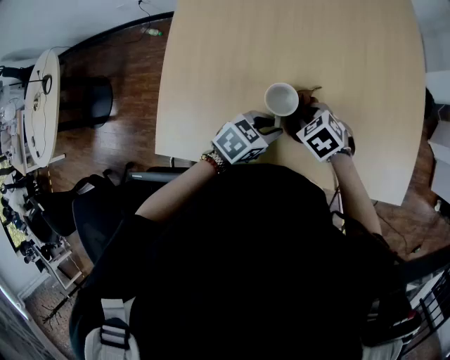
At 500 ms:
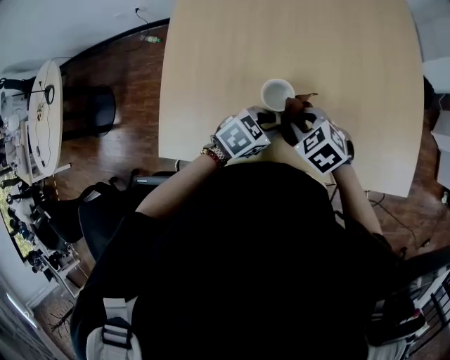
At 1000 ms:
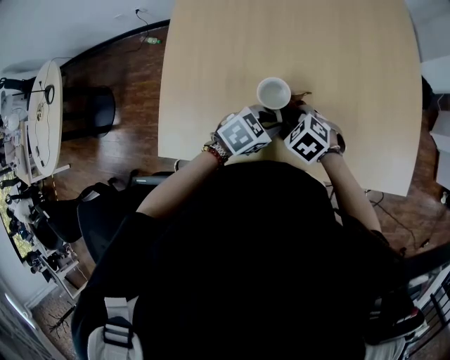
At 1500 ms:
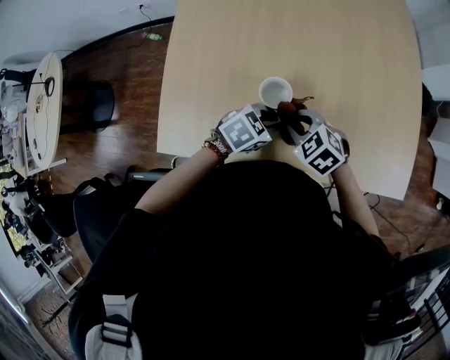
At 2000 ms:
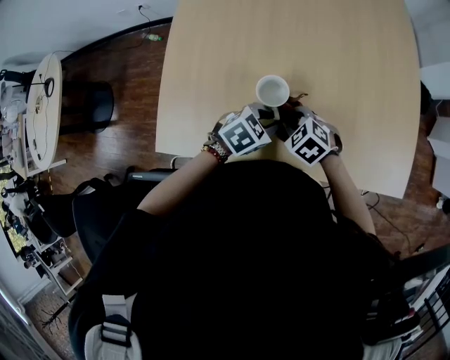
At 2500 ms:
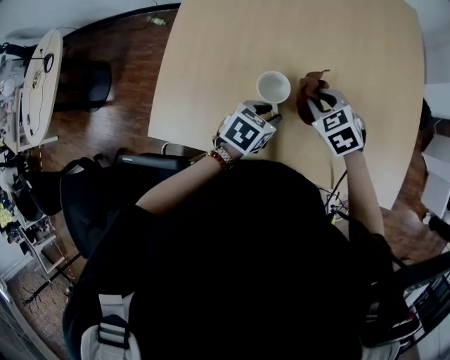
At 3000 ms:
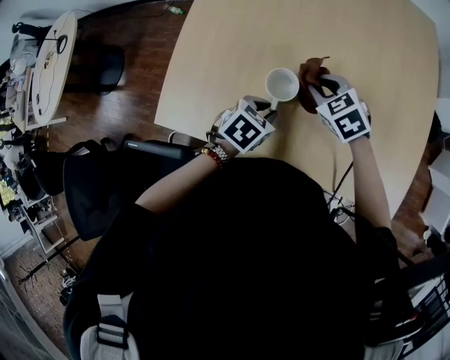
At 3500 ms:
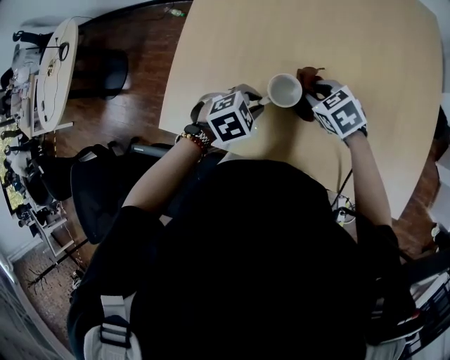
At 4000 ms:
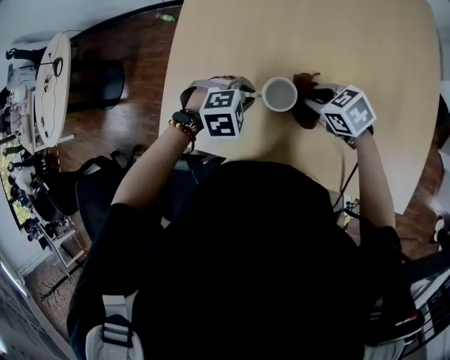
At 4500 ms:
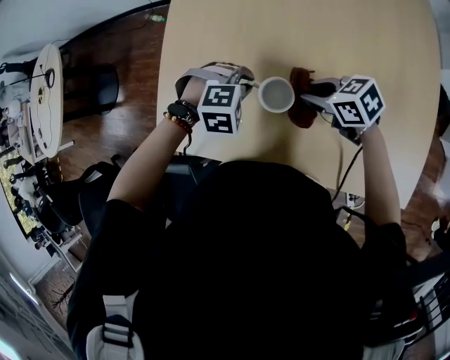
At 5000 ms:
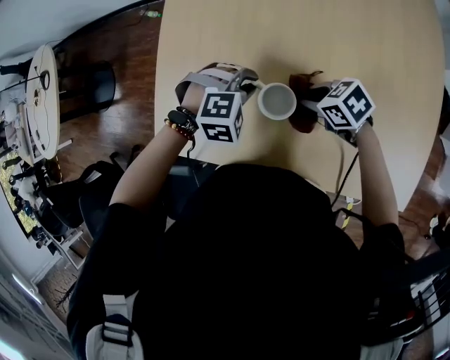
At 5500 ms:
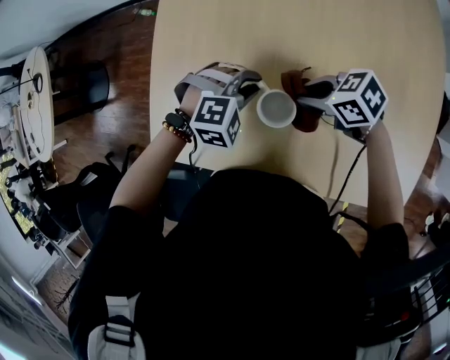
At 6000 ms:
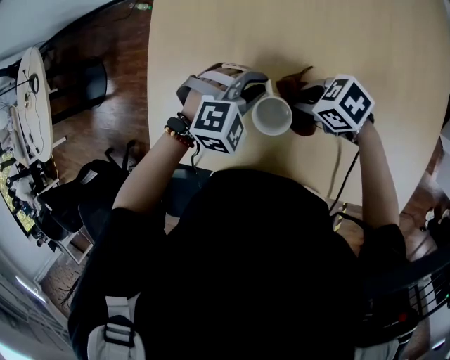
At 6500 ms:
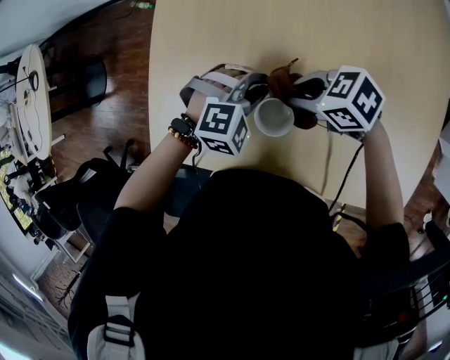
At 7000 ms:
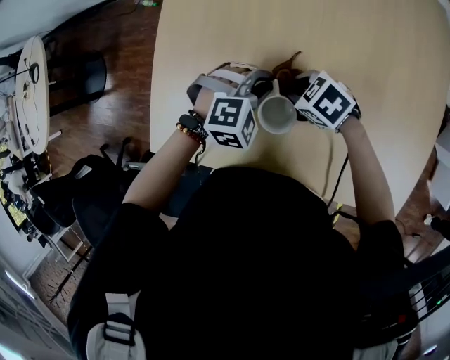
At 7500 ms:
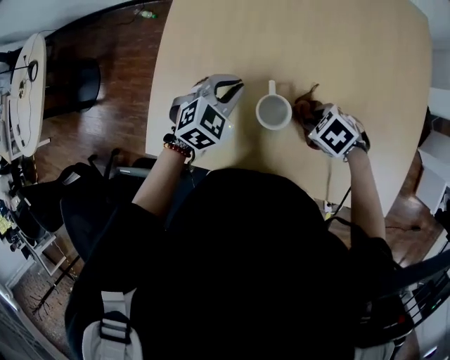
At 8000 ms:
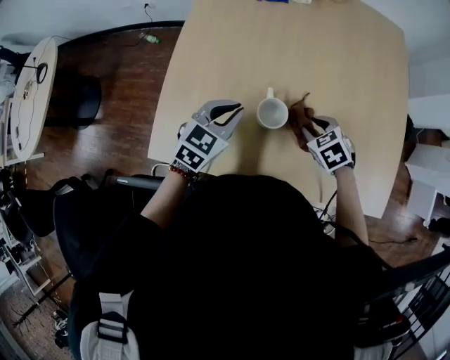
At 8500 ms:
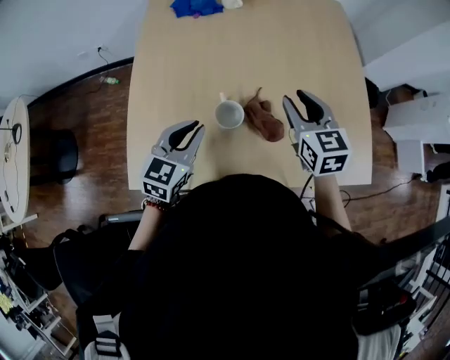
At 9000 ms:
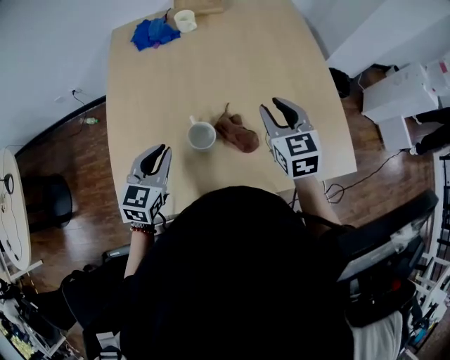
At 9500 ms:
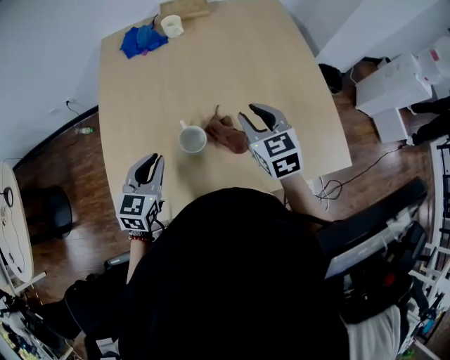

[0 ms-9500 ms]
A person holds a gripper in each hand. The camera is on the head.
0 ms to 2000 ms: The right gripper swings up and down, approximately 5 cm each way, with 3 reversals.
2000 ms to 4000 ms: The right gripper changes its angle by some 20 degrees, while the left gripper moves about 10 cm, and changes its angle by some 30 degrees.
4000 ms to 5500 ms: The left gripper changes place by approximately 10 cm.
5500 ms to 7500 ms: The right gripper moves up and down over approximately 5 cm, changing direction 2 times, and tips its fingers downward by about 30 degrees, while the left gripper changes place by approximately 5 cm, and rotates roughly 40 degrees.
7500 ms to 9500 ms: The right gripper travels upward by approximately 20 cm, and points its fingers roughly 40 degrees further upward. The left gripper ends up about 10 cm from where it was, and turns by approximately 30 degrees.

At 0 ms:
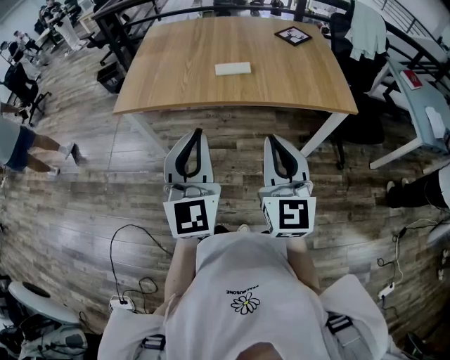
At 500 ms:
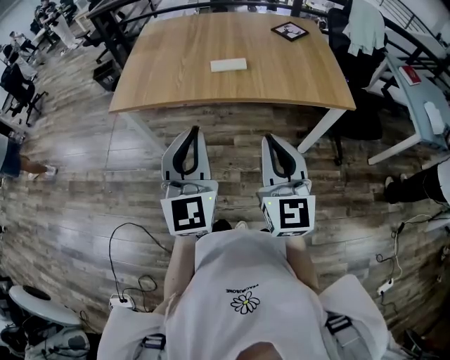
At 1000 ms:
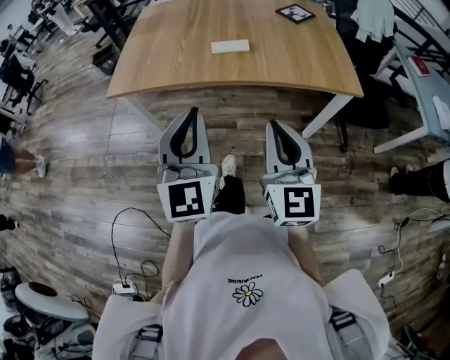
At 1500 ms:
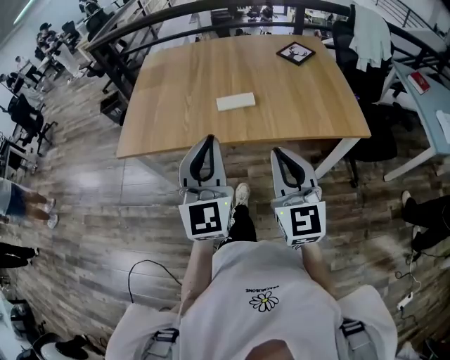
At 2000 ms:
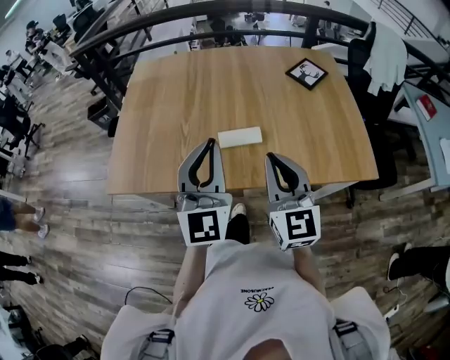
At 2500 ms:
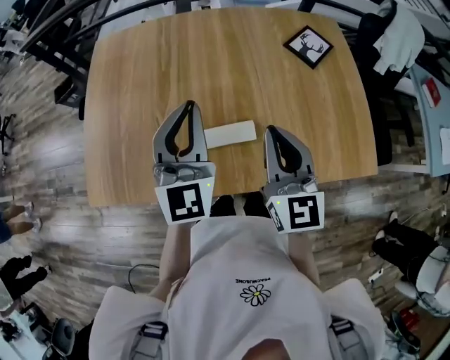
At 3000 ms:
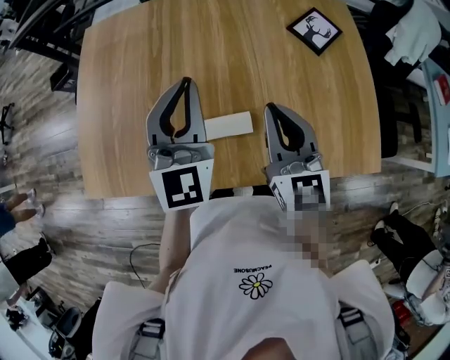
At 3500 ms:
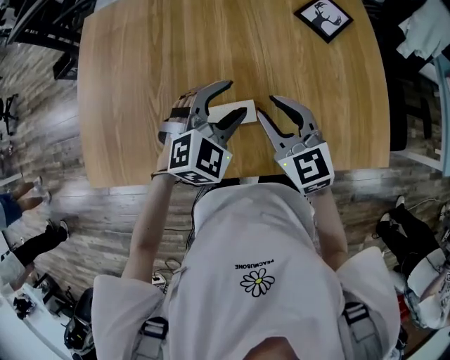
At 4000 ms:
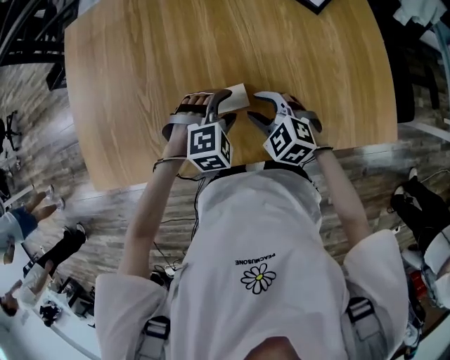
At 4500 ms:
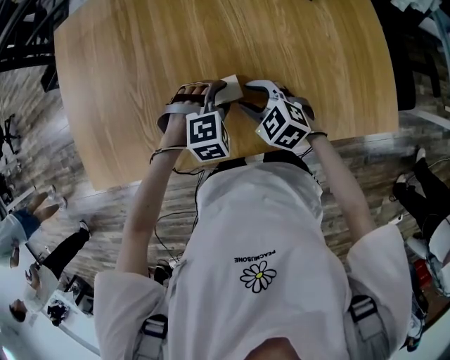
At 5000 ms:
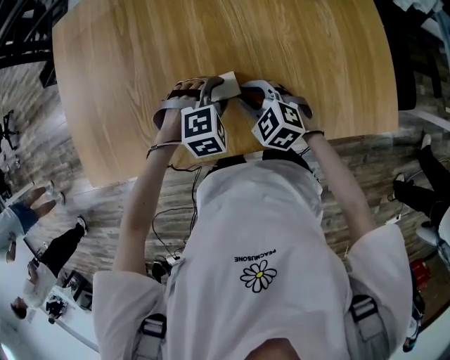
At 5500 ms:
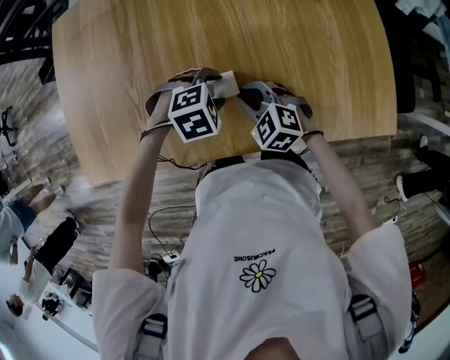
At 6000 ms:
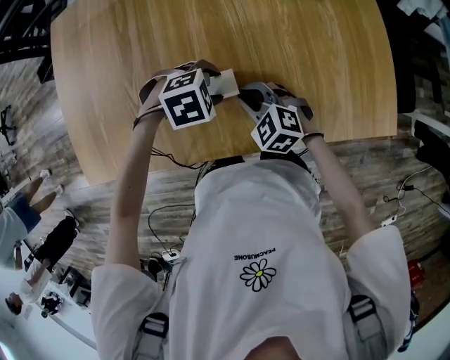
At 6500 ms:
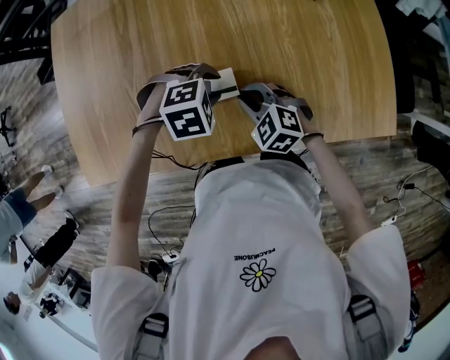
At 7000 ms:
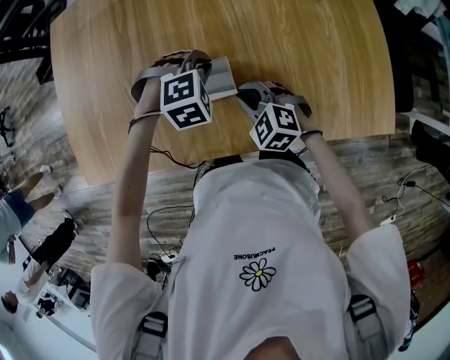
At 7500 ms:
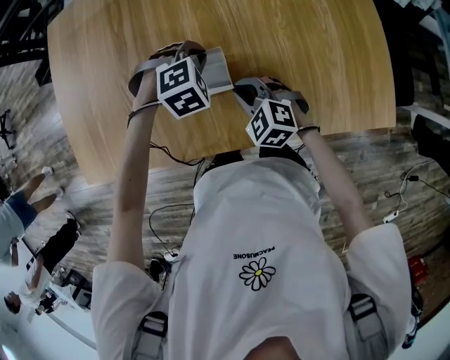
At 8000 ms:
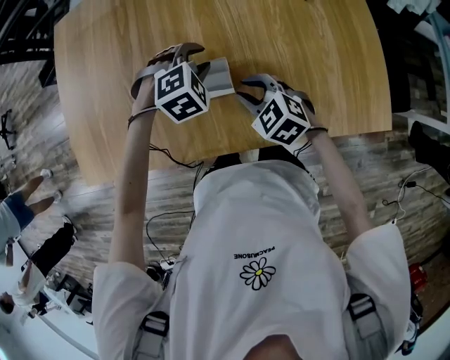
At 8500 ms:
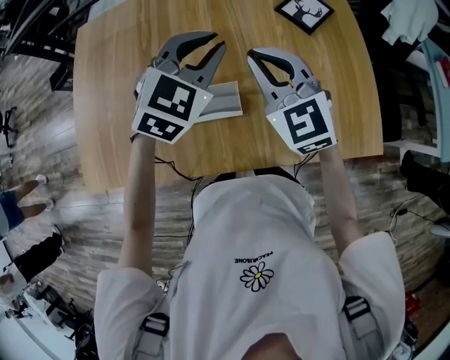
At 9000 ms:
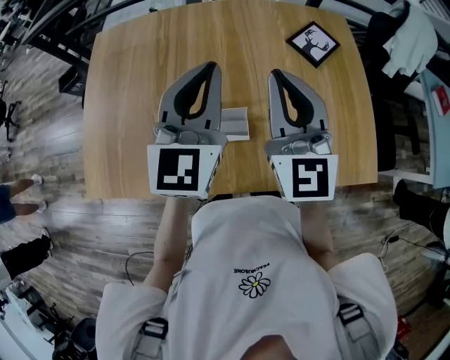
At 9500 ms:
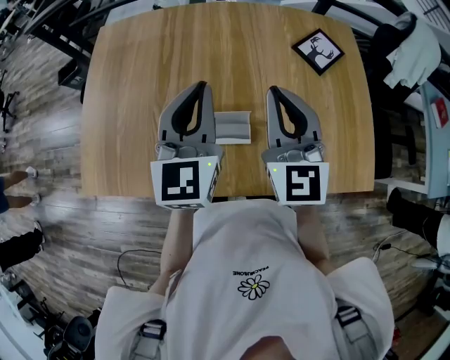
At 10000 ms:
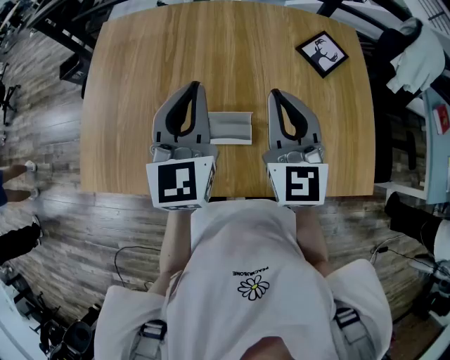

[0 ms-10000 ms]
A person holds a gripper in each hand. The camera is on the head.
0 ms to 2000 ms: Both grippers move forward, about 30 cm.
2000 ms to 4000 ms: The grippers both shift downward and forward by about 30 cm. The right gripper tips its fingers downward by some 50 degrees, and opens up, while the left gripper angles its fingers downward, by roughly 70 degrees, and opens up.
4000 ms to 6000 ms: The left gripper turns by approximately 30 degrees; the right gripper closes.
6000 ms to 8000 ms: The left gripper ends up roughly 10 cm from where it was, rotates some 30 degrees, and closes, then reopens.
8000 ms to 10000 ms: Both grippers travel together upward, about 25 cm. The right gripper angles its fingers upward, by approximately 40 degrees, and closes up. The left gripper tilts its fingers approximately 60 degrees upward, and closes.

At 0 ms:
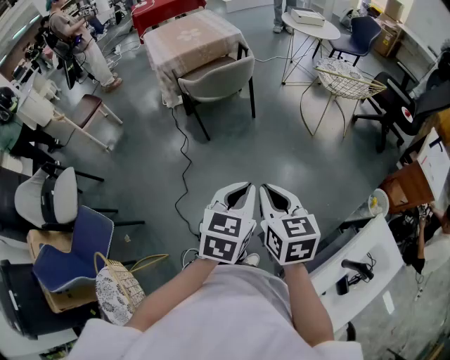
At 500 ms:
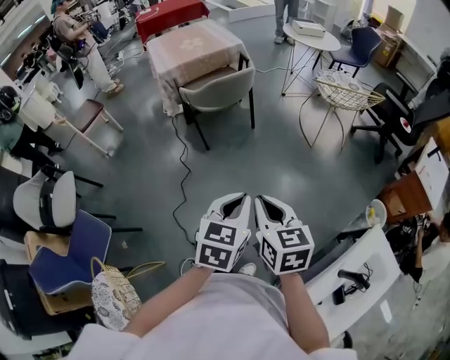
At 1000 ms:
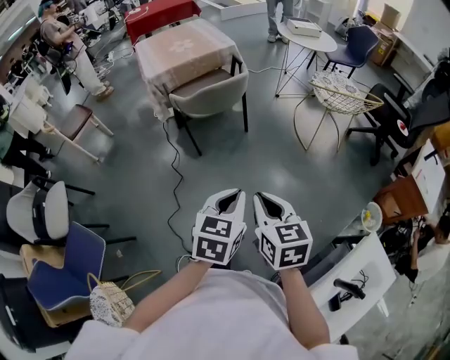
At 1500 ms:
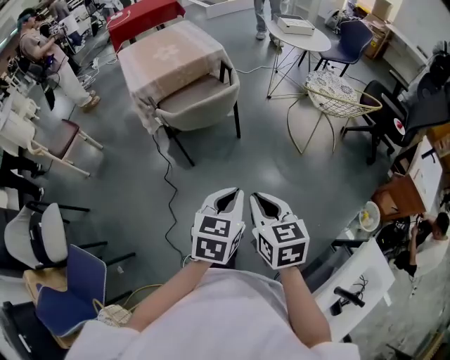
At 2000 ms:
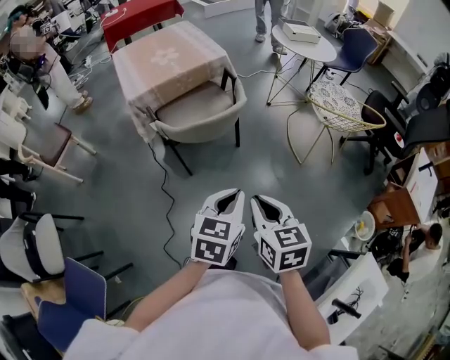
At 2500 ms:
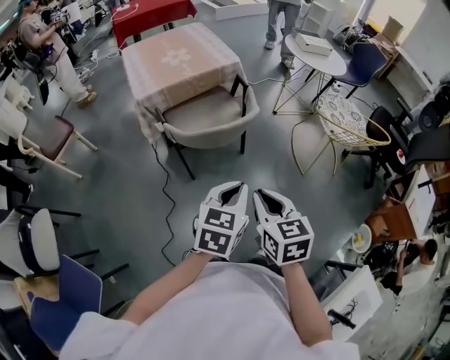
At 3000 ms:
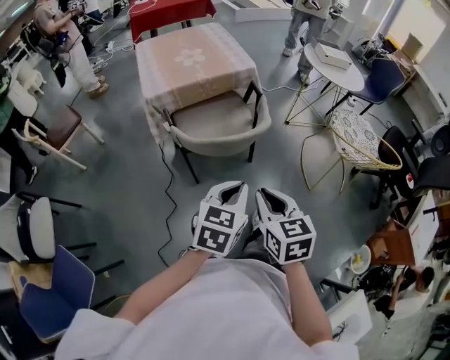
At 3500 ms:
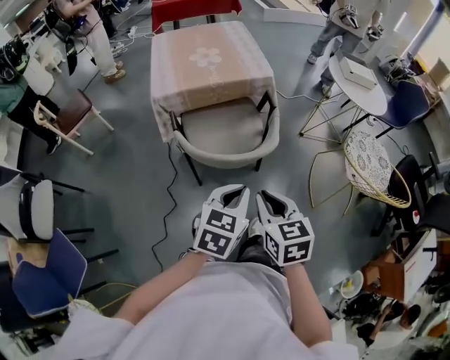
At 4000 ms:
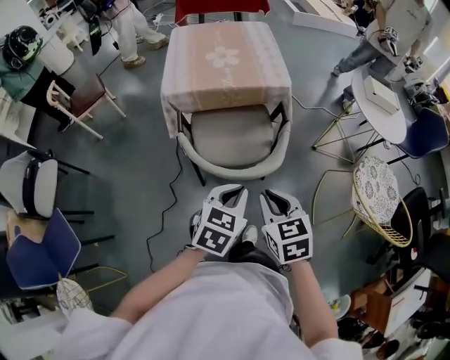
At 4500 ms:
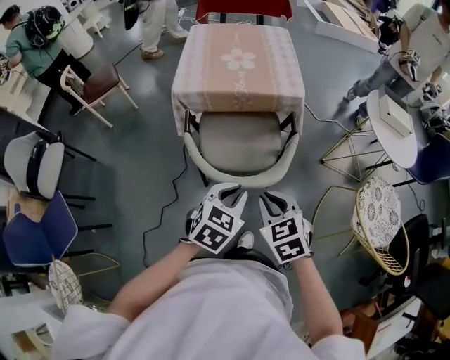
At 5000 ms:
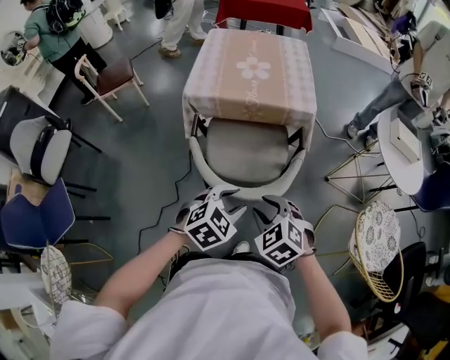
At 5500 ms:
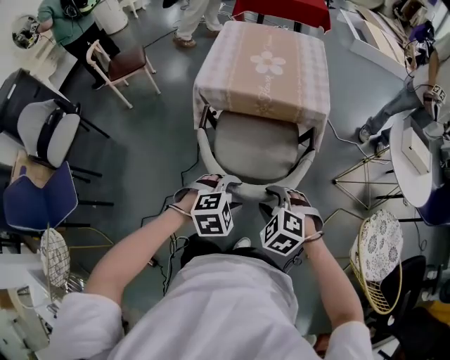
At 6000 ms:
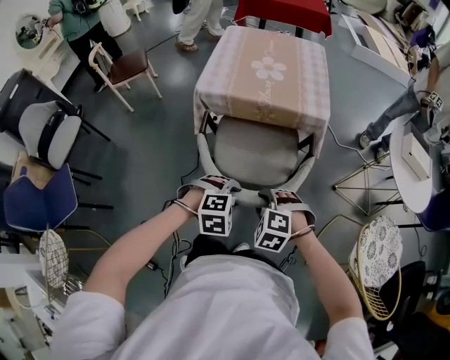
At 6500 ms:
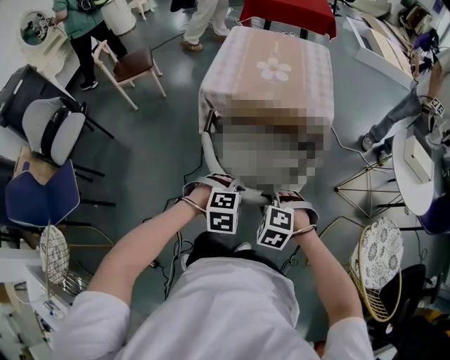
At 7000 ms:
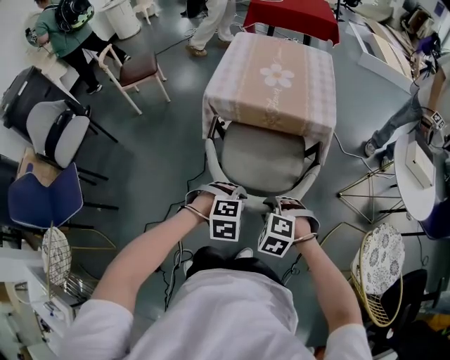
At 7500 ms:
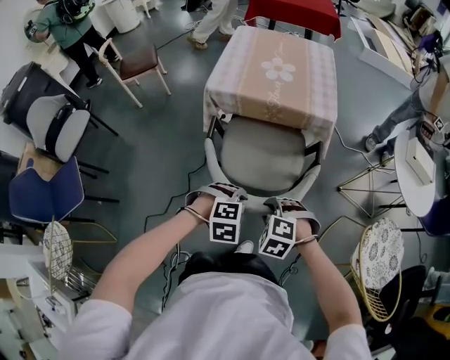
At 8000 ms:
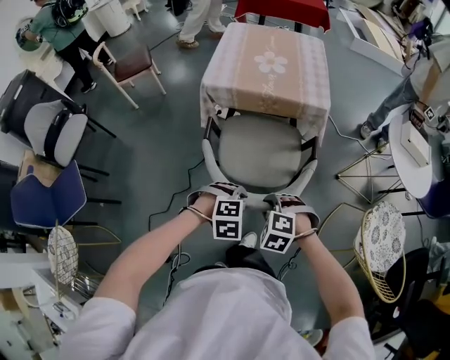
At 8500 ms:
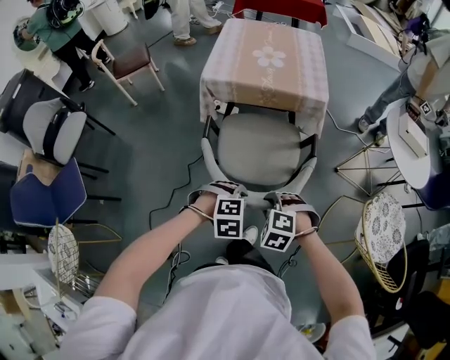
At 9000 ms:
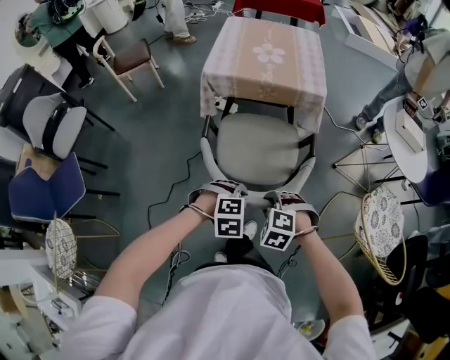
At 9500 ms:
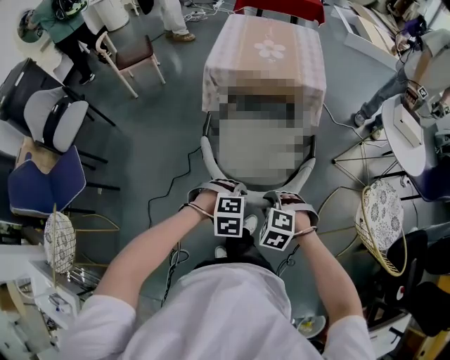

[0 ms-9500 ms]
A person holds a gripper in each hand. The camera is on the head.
0 ms to 2000 ms: The two grippers go roughly 25 cm forward.
2000 ms to 4000 ms: The grippers both shift forward by some 25 cm. The right gripper changes its angle by some 30 degrees.
4000 ms to 5500 ms: The right gripper heads downward and forward, covering roughly 10 cm, rotates around the line of its fingers by roughly 60 degrees, counterclockwise from behind, and opens. Meanwhile the left gripper travels downward by about 10 cm, turns by about 40 degrees, and opens.
5500 ms to 7500 ms: The left gripper closes its fingers.
7500 ms to 9500 ms: Both grippers travel together backward, approximately 15 cm.
